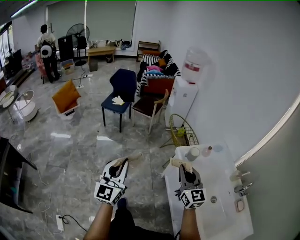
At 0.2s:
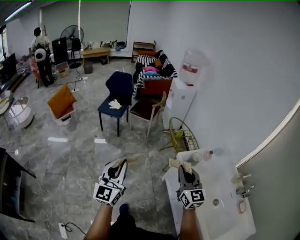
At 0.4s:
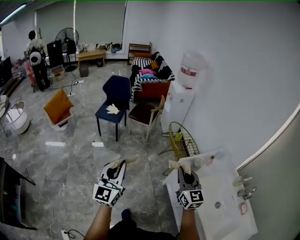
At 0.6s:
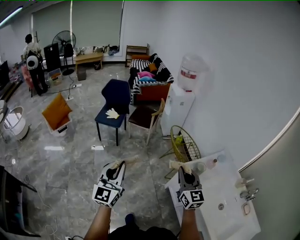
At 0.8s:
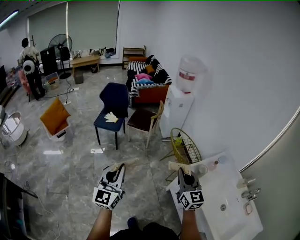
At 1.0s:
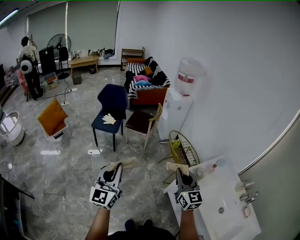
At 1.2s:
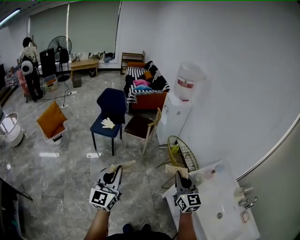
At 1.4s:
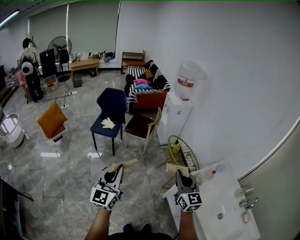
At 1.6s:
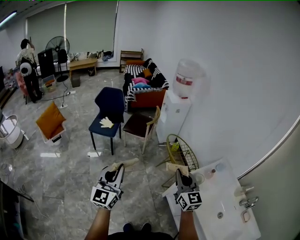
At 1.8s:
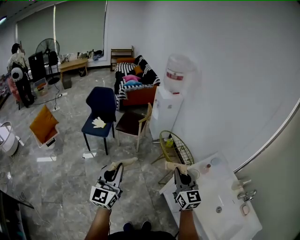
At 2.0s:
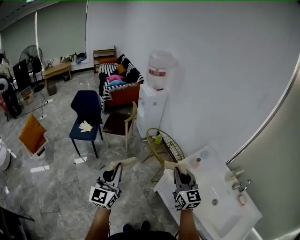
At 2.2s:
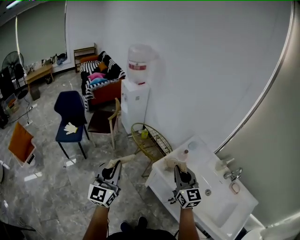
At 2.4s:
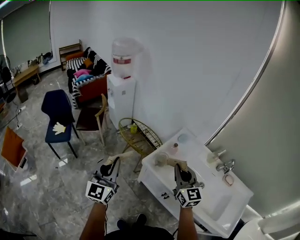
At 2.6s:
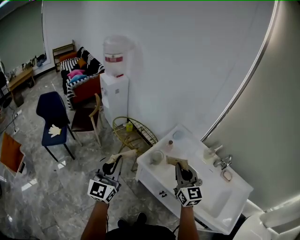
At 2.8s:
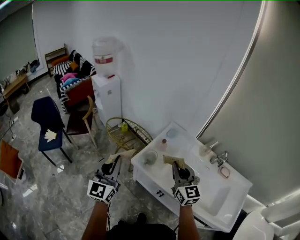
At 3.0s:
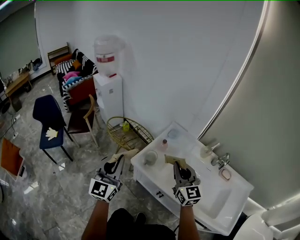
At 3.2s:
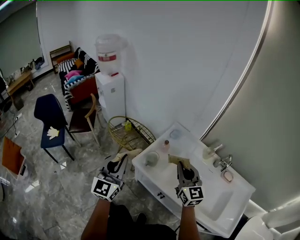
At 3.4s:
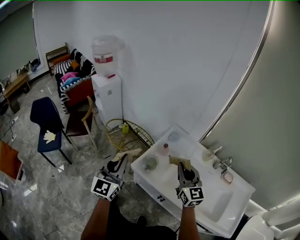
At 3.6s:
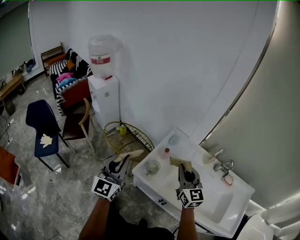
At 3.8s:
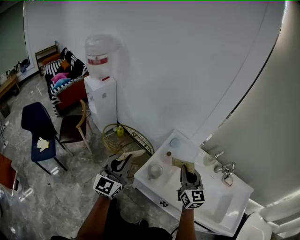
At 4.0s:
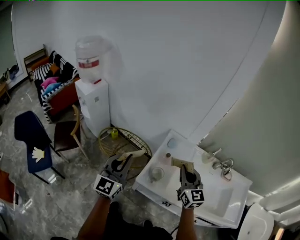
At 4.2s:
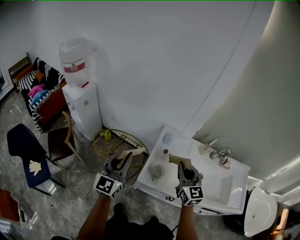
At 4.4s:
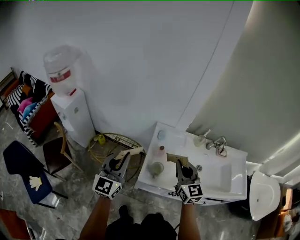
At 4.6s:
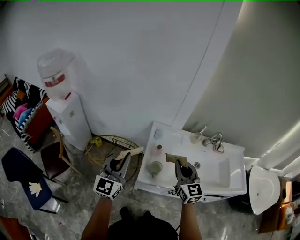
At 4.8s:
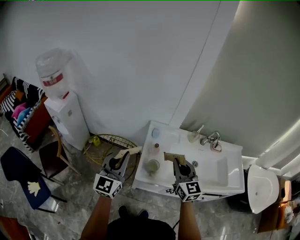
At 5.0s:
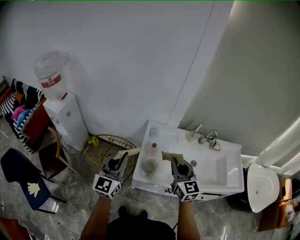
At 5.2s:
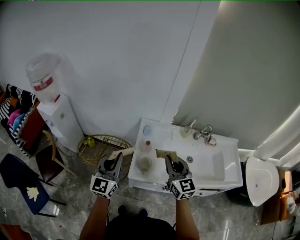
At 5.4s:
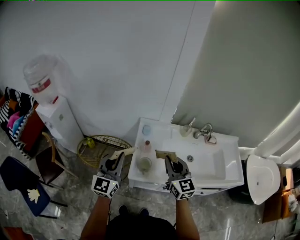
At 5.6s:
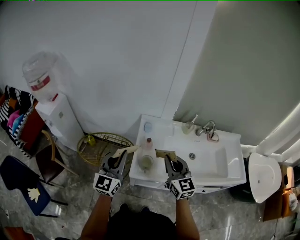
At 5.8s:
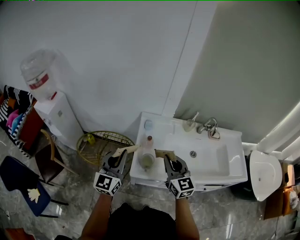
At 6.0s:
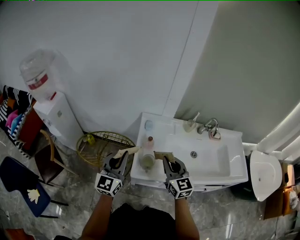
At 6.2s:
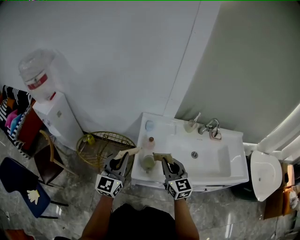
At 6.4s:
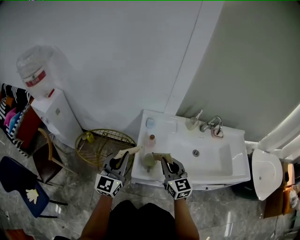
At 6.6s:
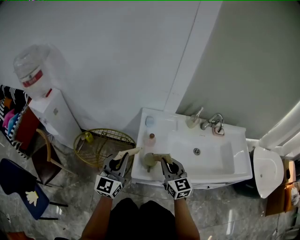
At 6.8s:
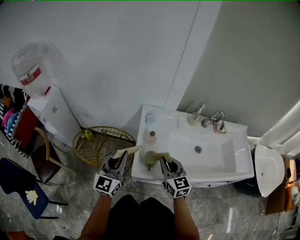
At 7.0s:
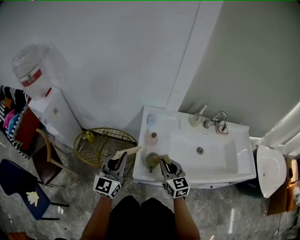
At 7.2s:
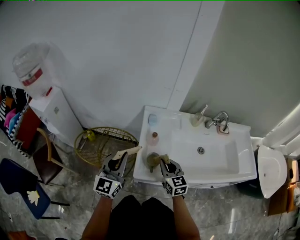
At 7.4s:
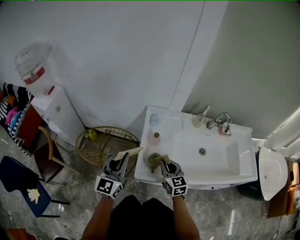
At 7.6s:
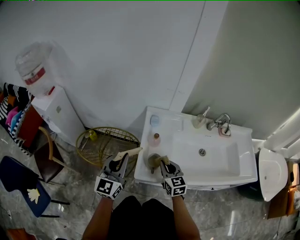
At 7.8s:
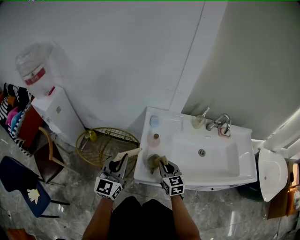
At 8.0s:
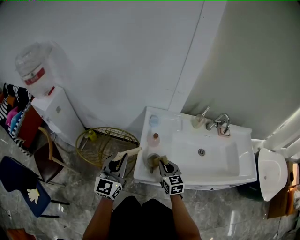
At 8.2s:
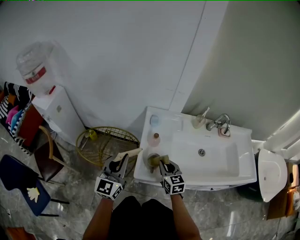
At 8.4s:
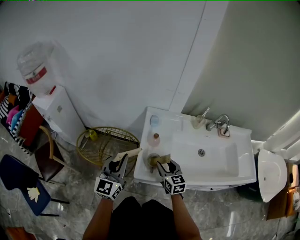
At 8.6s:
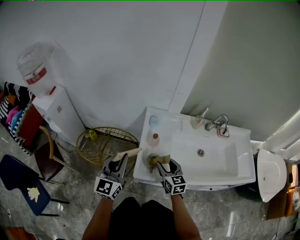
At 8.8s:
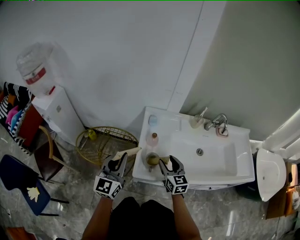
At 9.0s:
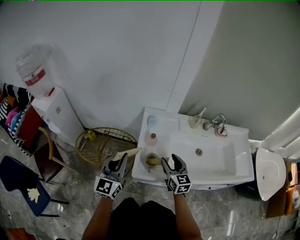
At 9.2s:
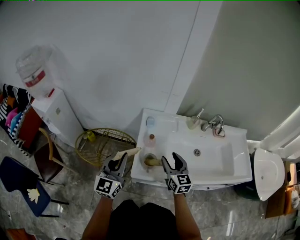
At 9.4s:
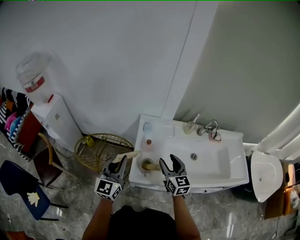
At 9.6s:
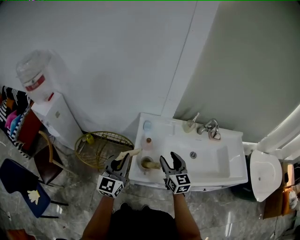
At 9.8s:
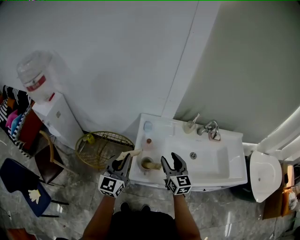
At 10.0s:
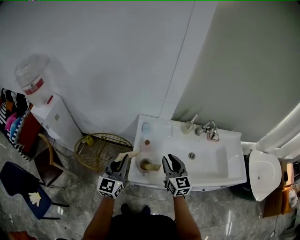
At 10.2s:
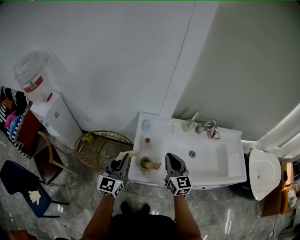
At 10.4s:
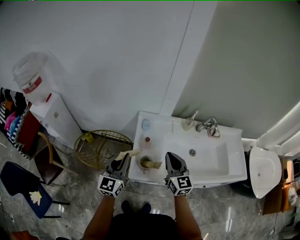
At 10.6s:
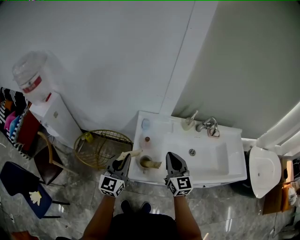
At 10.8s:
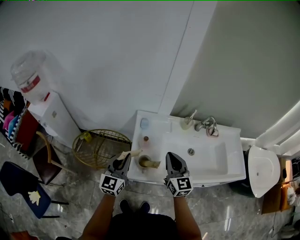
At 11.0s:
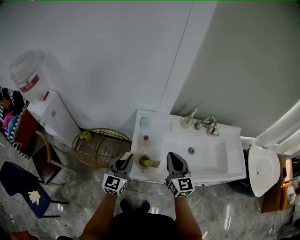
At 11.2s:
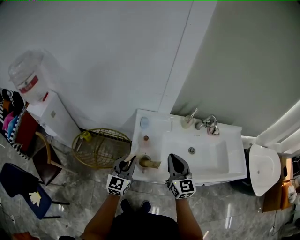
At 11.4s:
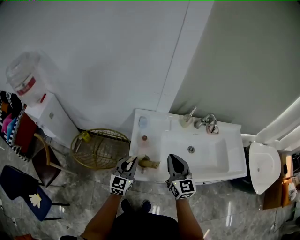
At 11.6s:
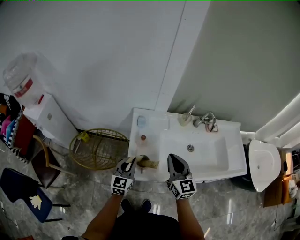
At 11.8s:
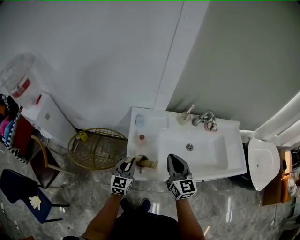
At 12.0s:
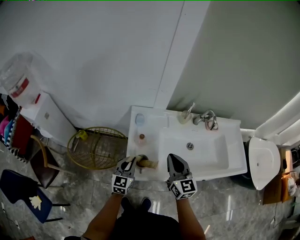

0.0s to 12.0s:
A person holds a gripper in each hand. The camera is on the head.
0.0s to 1.6s: The grippers both shift forward and to the left by some 25 cm.
1.6s to 3.0s: The left gripper moves some 35 cm, and changes its angle by approximately 30 degrees. Meanwhile the right gripper ends up roughly 30 cm from where it was, and swivels about 30 degrees.
3.0s to 4.4s: The left gripper shifts by approximately 20 cm, and turns by roughly 30 degrees. Meanwhile the right gripper ends up some 15 cm from where it was, and swivels some 30 degrees.
4.4s to 6.0s: The left gripper shifts approximately 10 cm downward and to the right. The right gripper heads downward, covering roughly 10 cm.
6.0s to 7.6s: The left gripper goes about 5 cm downward; the right gripper travels downward by some 15 cm.
7.6s to 9.0s: The right gripper shifts by roughly 5 cm, and opens.
9.0s to 10.4s: The right gripper travels upward by approximately 10 cm, and closes.
10.4s to 12.0s: The left gripper moves downward and to the right, approximately 15 cm.

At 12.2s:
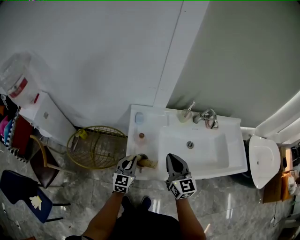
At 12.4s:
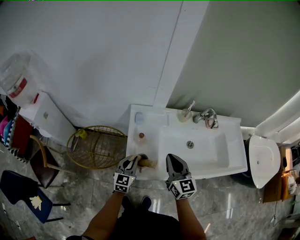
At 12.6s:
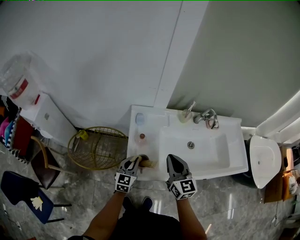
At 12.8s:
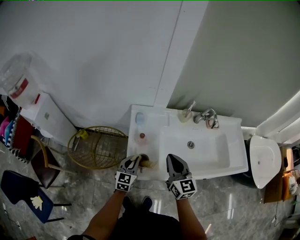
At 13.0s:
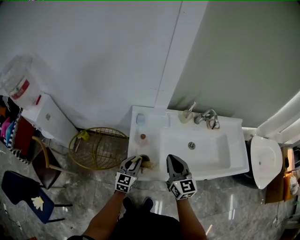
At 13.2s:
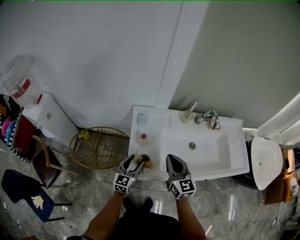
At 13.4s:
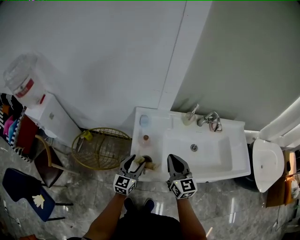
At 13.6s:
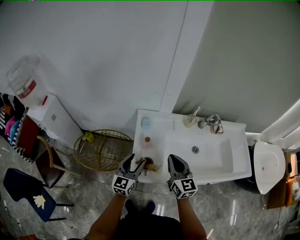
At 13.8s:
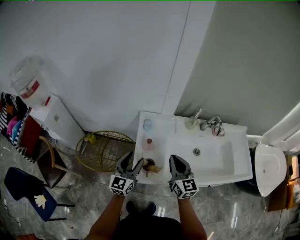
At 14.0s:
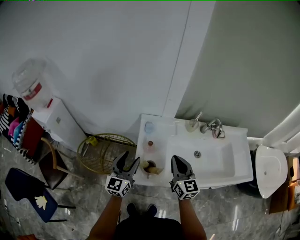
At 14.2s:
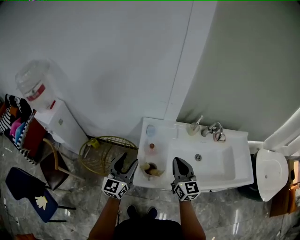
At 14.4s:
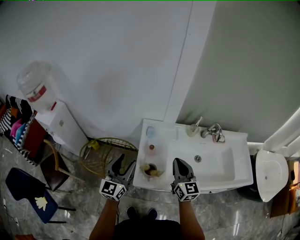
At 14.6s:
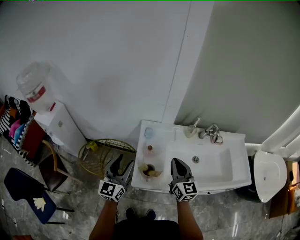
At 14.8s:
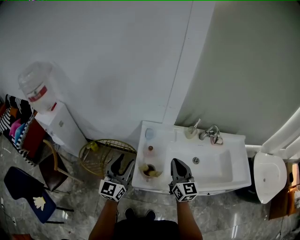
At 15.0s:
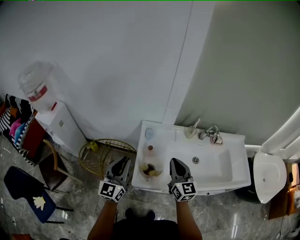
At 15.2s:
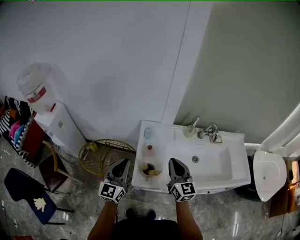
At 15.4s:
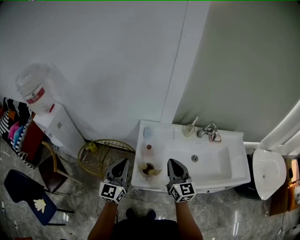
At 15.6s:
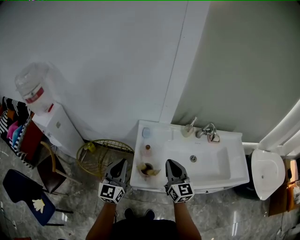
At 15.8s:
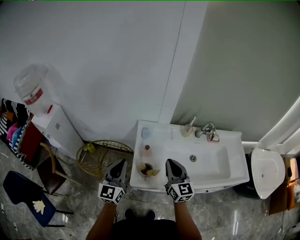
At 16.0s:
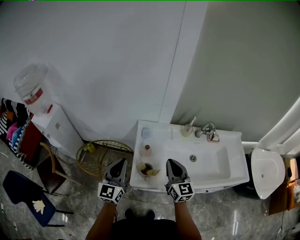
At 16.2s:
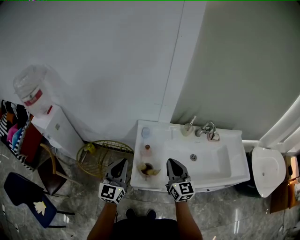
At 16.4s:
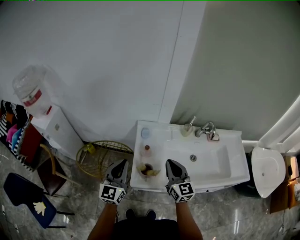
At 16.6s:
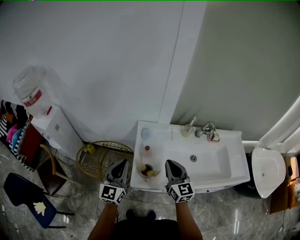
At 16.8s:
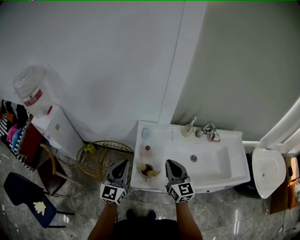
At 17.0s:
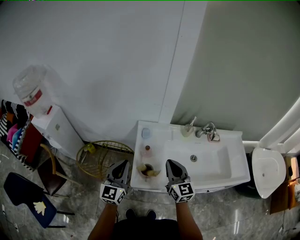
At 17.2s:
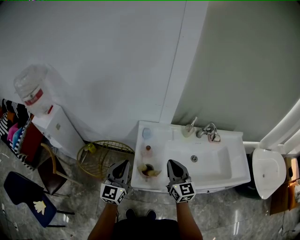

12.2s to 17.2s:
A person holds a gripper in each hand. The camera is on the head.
12.2s to 13.8s: The left gripper shifts about 10 cm upward, and opens its fingers.
13.8s to 15.6s: The left gripper shifts some 10 cm upward and to the left, and closes.
15.6s to 17.2s: The two grippers keep their place.

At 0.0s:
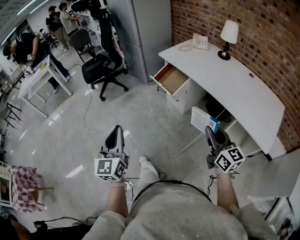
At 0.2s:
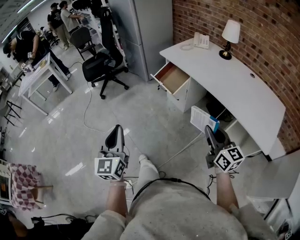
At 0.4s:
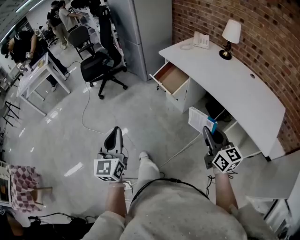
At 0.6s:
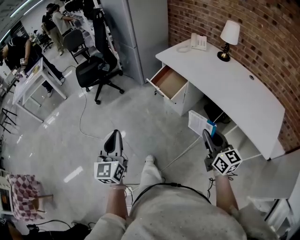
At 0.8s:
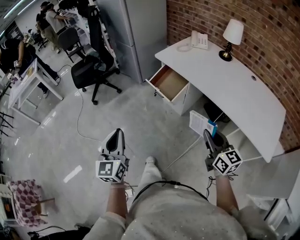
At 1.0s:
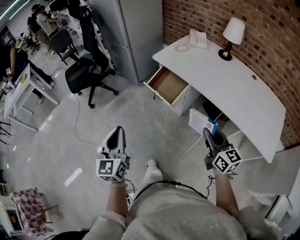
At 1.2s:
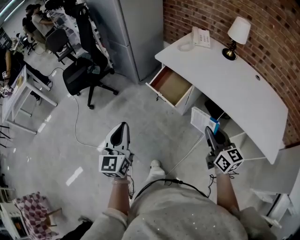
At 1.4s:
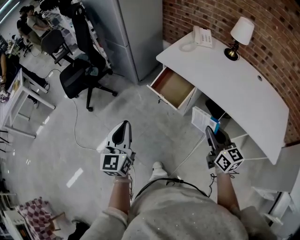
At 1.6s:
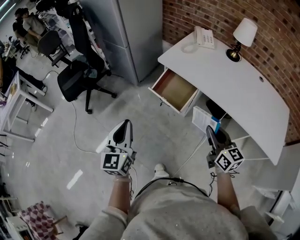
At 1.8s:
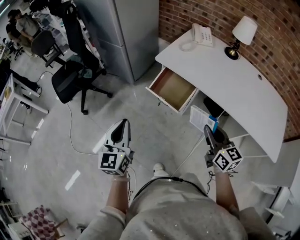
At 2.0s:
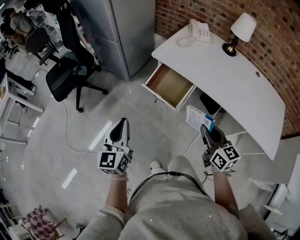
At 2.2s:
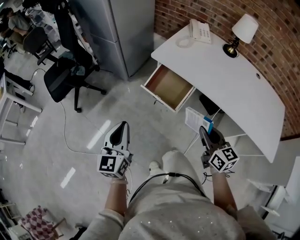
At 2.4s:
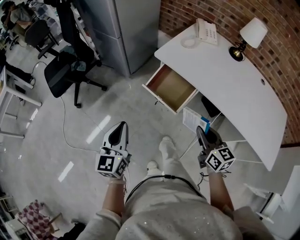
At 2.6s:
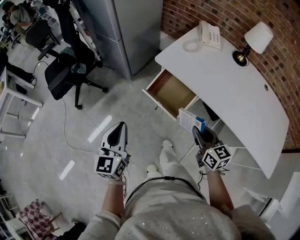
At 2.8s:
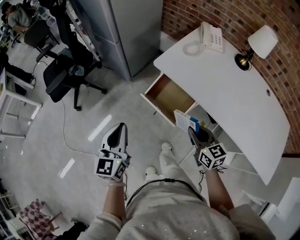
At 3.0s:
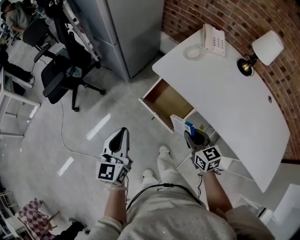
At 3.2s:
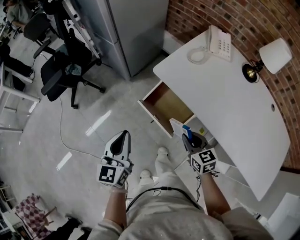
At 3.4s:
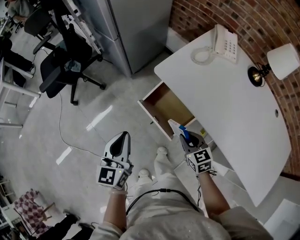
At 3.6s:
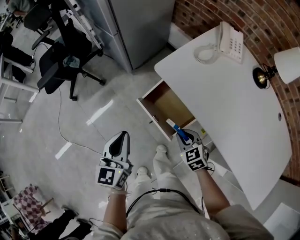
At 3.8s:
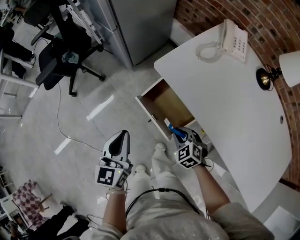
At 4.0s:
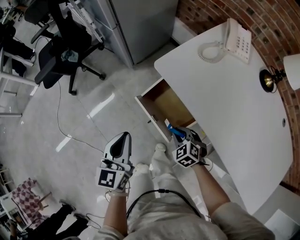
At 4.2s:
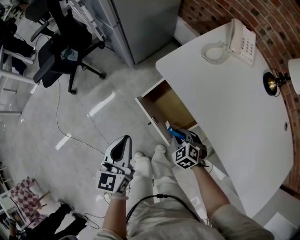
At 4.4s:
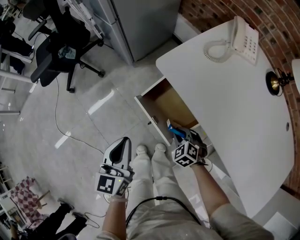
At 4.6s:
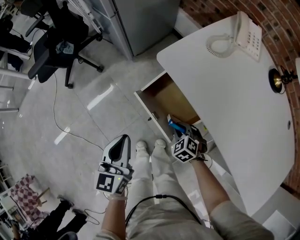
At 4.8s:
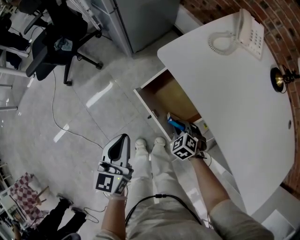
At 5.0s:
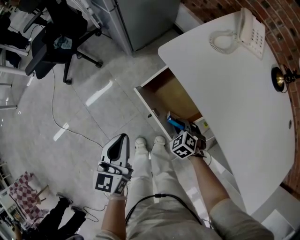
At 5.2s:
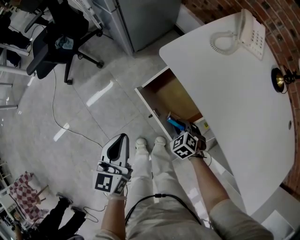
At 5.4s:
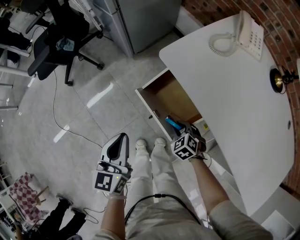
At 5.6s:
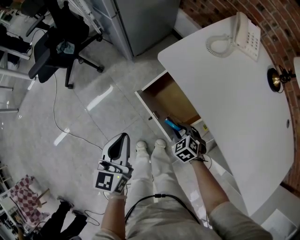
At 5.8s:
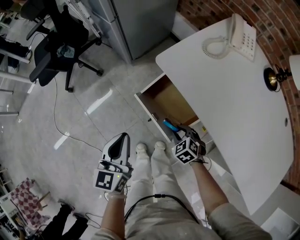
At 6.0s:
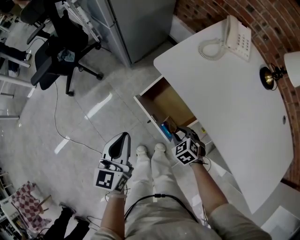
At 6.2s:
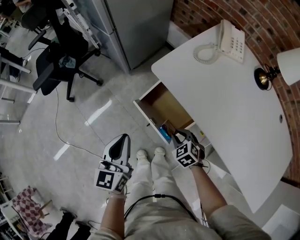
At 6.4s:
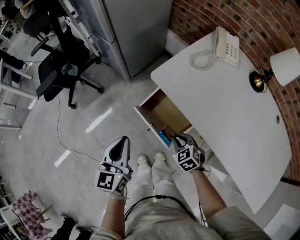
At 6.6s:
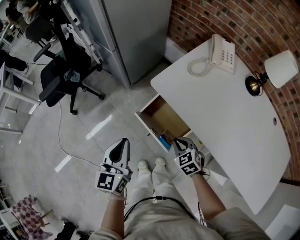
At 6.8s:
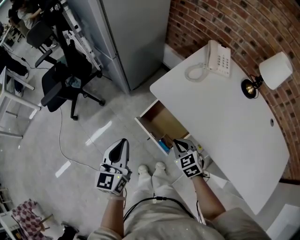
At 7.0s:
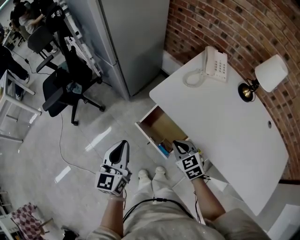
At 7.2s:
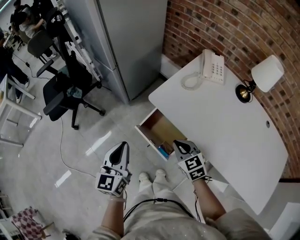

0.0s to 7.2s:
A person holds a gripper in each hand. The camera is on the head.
0.0s to 1.4s: Both grippers travel together forward, about 30 cm.
1.4s to 2.8s: The right gripper goes some 20 cm forward and downward. Meanwhile the left gripper shifts roughly 15 cm forward.
2.8s to 4.4s: The left gripper is displaced downward, to the right and forward by roughly 15 cm, while the right gripper moves downward and forward, about 25 cm, and angles its fingers downward, by some 40 degrees.
4.4s to 5.8s: There are only small adjustments of the grippers.
5.8s to 7.2s: The right gripper travels upward by about 20 cm, rotates roughly 30 degrees, and closes up, while the left gripper is displaced upward by some 10 cm.
